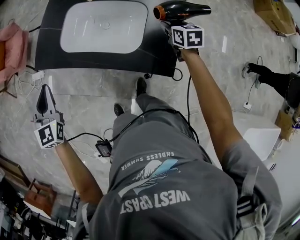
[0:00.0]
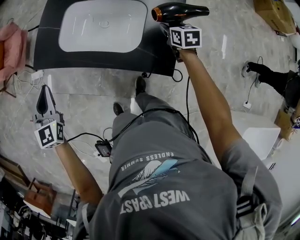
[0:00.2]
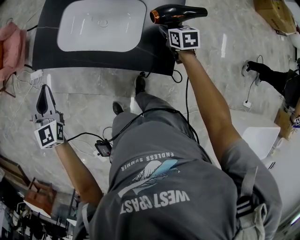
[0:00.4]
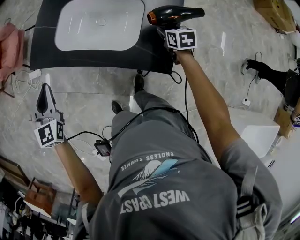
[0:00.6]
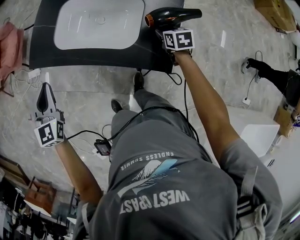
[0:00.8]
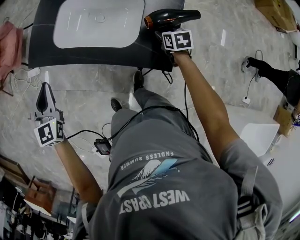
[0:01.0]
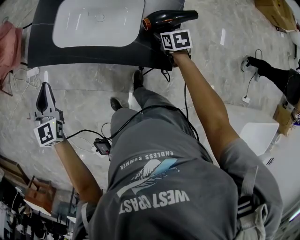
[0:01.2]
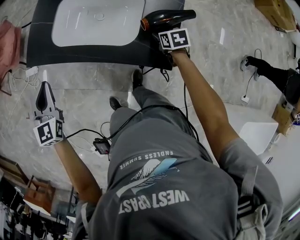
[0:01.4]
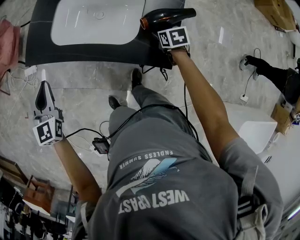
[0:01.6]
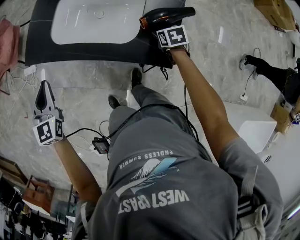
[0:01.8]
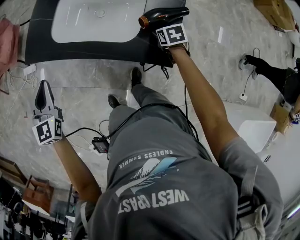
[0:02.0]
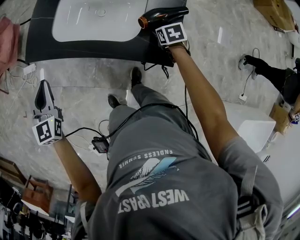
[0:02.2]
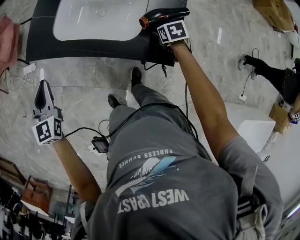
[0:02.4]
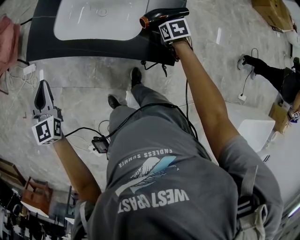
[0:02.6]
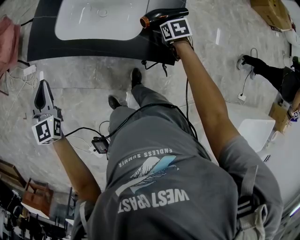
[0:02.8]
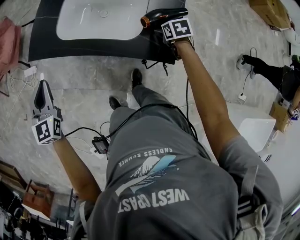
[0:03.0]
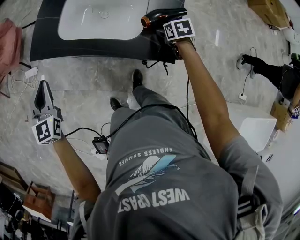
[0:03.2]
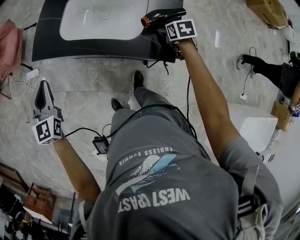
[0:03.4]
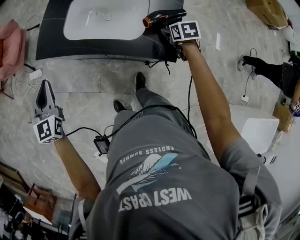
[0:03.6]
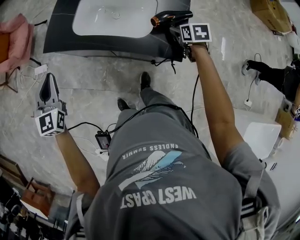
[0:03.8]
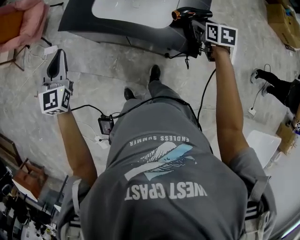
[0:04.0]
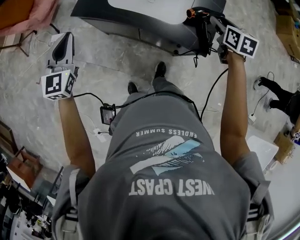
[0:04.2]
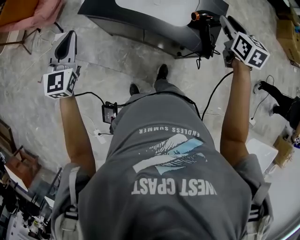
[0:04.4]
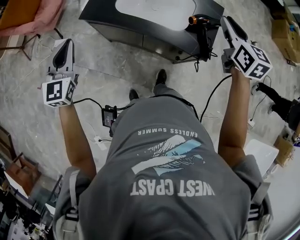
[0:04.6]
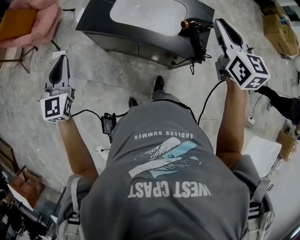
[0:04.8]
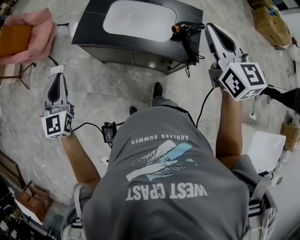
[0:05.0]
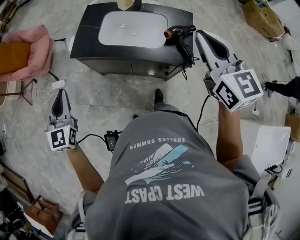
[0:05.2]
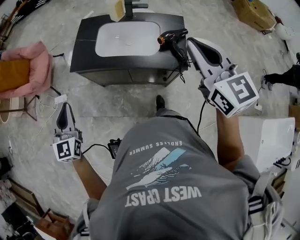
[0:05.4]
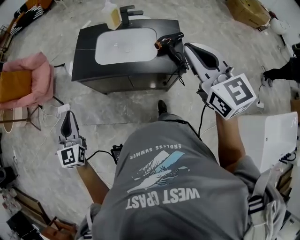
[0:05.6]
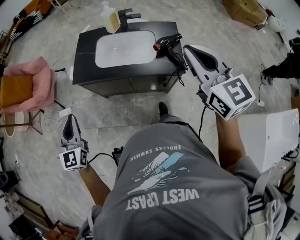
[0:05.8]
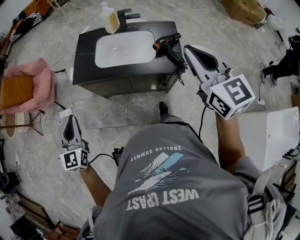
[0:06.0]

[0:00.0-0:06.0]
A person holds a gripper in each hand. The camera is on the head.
0:00.0 to 0:01.6: The right gripper is displaced downward and backward by some 15 cm.
0:01.6 to 0:03.0: The right gripper opens its fingers.
0:03.0 to 0:04.4: The left gripper travels upward and to the left by about 10 cm. The right gripper travels upward by some 30 cm, angles its fingers upward, by approximately 40 degrees, and closes.
0:04.4 to 0:06.0: The left gripper heads backward, covering roughly 10 cm. The right gripper goes approximately 30 cm upward, backward and to the left, swivels approximately 30 degrees, and closes.

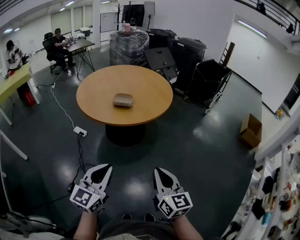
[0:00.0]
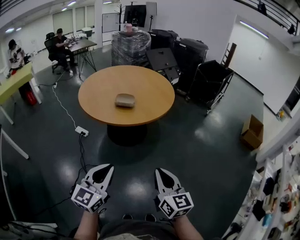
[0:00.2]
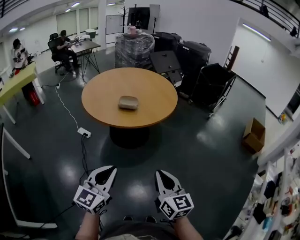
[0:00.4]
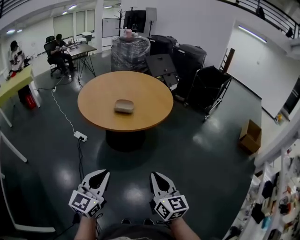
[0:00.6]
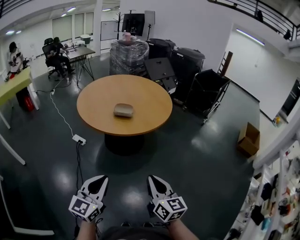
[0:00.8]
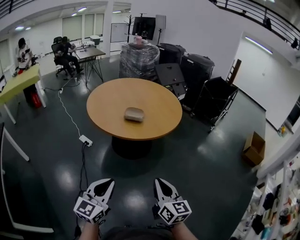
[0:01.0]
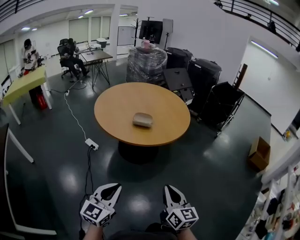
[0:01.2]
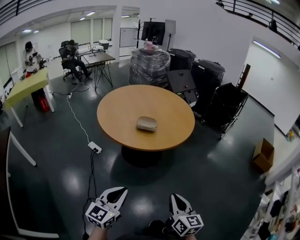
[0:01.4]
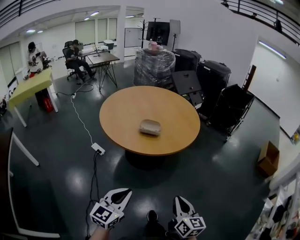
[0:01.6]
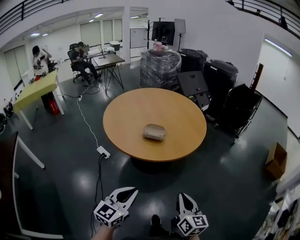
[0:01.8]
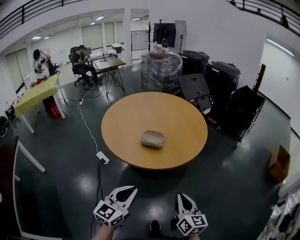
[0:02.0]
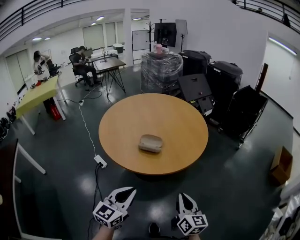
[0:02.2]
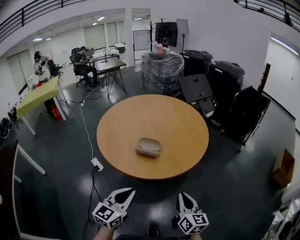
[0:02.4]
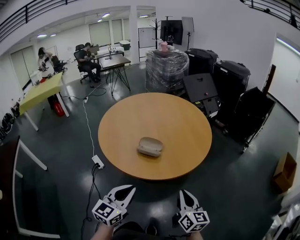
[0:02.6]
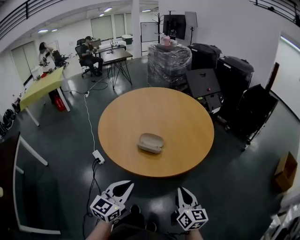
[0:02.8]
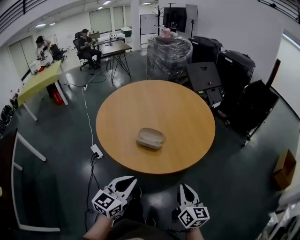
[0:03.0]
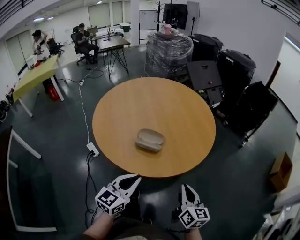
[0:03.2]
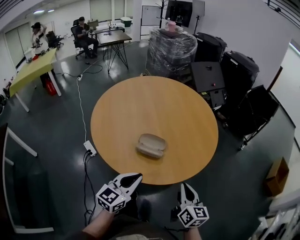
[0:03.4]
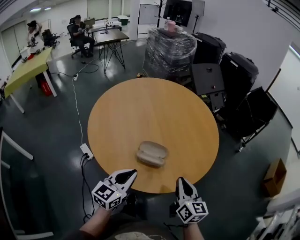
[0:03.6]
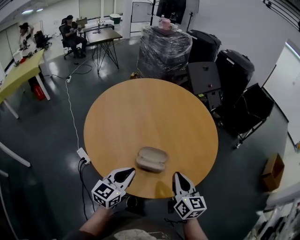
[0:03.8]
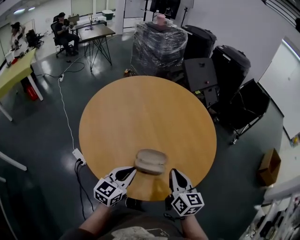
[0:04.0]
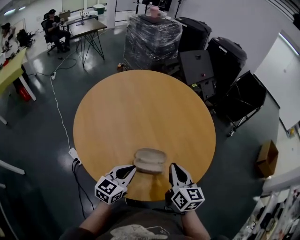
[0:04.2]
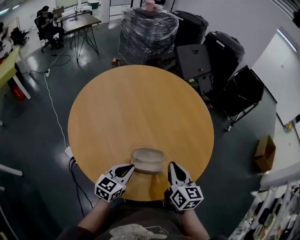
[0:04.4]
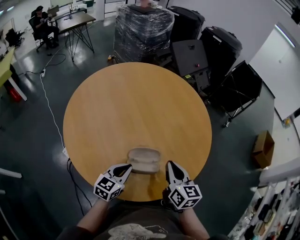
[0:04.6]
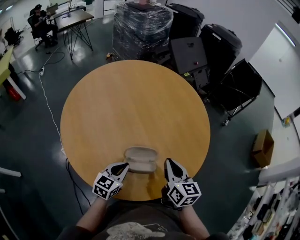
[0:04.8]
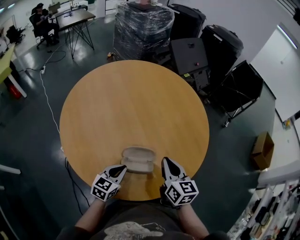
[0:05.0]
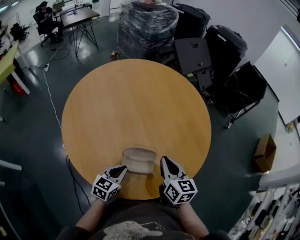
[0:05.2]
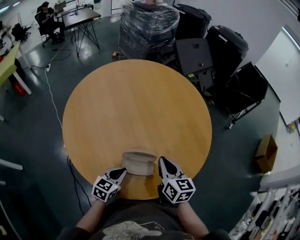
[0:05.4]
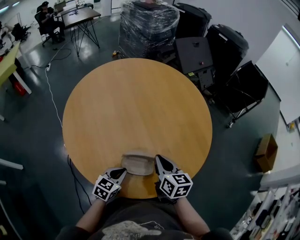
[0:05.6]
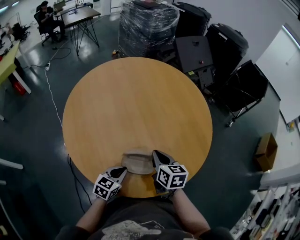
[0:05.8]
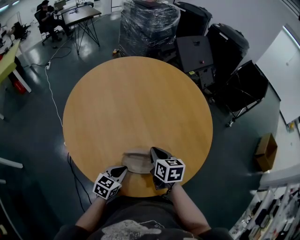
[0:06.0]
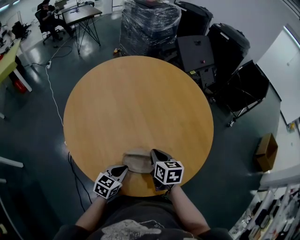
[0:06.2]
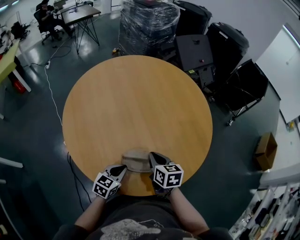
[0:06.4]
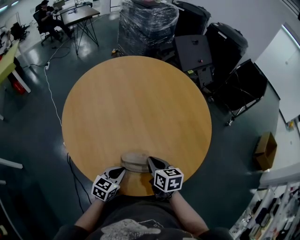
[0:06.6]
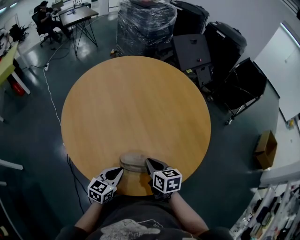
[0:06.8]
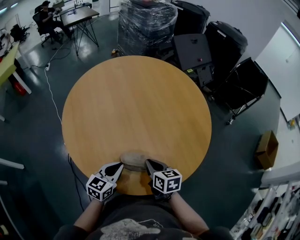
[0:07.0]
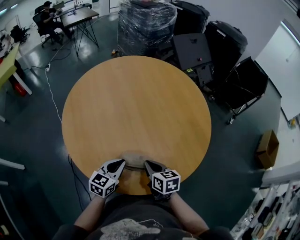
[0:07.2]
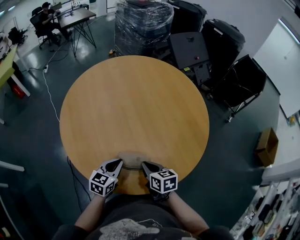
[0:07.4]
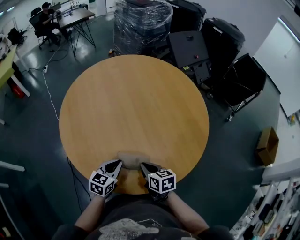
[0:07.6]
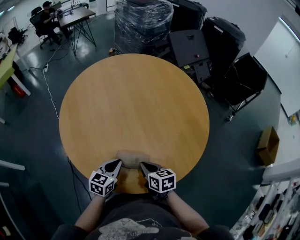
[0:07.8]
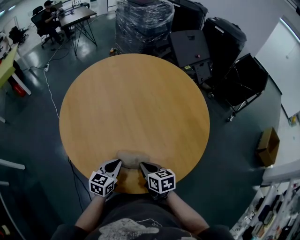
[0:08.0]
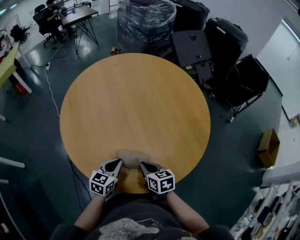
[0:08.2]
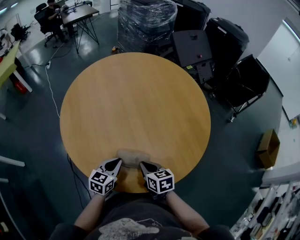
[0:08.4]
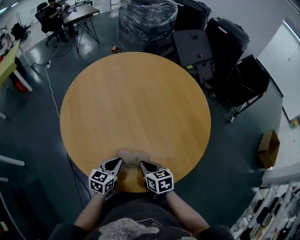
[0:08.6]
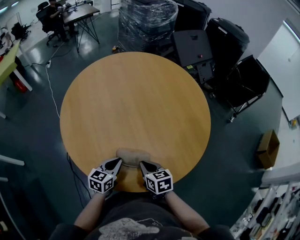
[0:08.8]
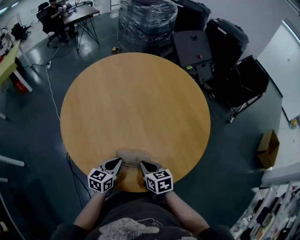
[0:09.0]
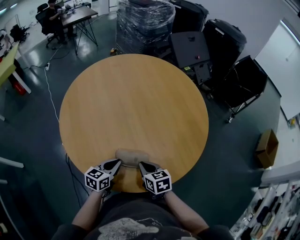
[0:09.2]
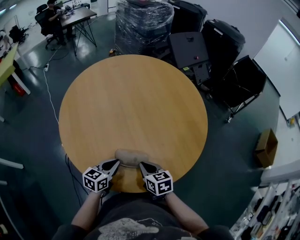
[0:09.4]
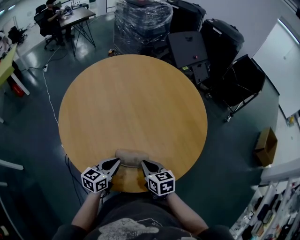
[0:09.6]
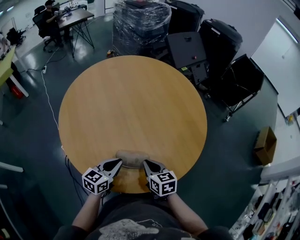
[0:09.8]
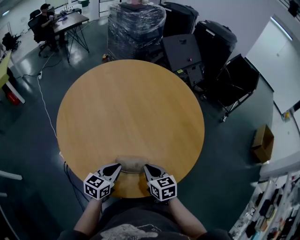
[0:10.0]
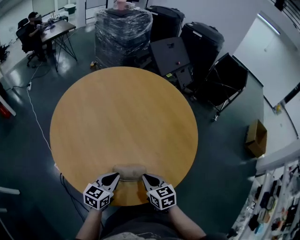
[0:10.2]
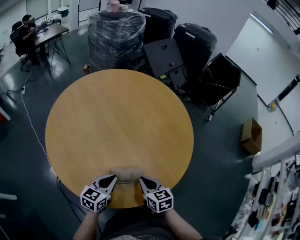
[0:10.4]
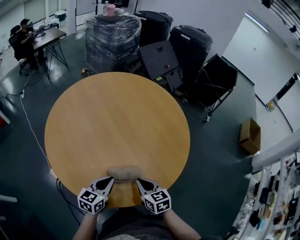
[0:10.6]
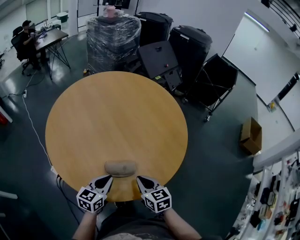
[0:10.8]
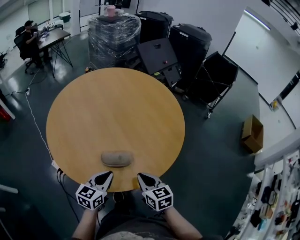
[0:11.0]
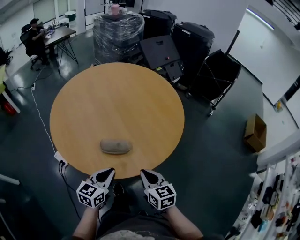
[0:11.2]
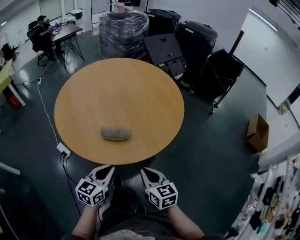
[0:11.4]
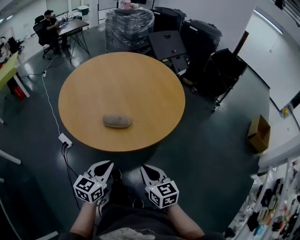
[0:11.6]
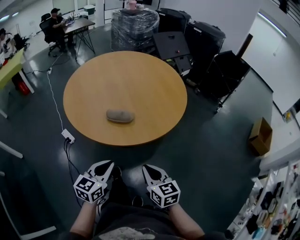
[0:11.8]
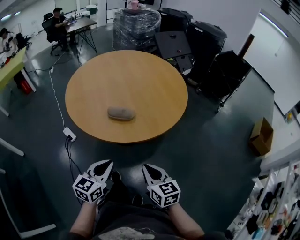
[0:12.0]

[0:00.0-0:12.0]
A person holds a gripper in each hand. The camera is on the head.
0:00.0 to 0:01.6: The right gripper is displaced forward and downward by roughly 10 cm. The left gripper shifts about 10 cm forward, downward and to the left.
0:01.6 to 0:03.0: The grippers both shift forward by some 25 cm.
0:03.0 to 0:04.4: The right gripper goes about 30 cm forward and to the left, while the left gripper travels forward, downward and to the left by some 35 cm.
0:04.4 to 0:06.0: The left gripper shifts roughly 10 cm downward; the right gripper goes approximately 10 cm downward and forward, and rotates about 20 degrees.
0:06.0 to 0:07.6: The right gripper goes roughly 10 cm backward and downward.
0:07.6 to 0:10.4: The grippers move only a little.
0:10.4 to 0:12.0: The left gripper shifts some 30 cm backward; the right gripper shifts about 30 cm backward and to the right.

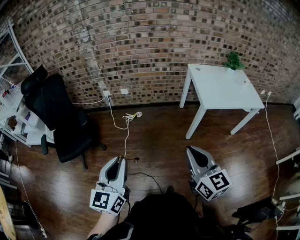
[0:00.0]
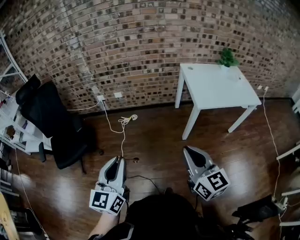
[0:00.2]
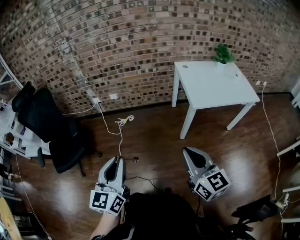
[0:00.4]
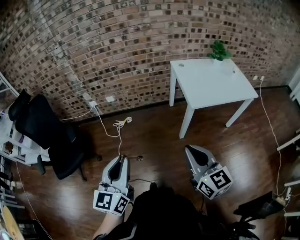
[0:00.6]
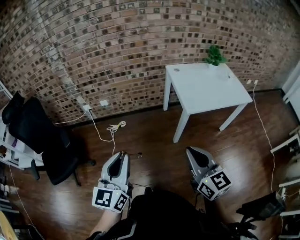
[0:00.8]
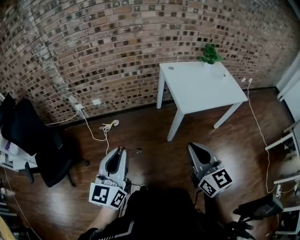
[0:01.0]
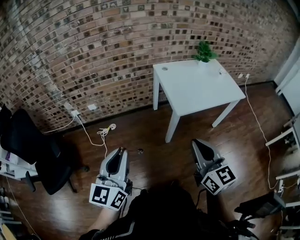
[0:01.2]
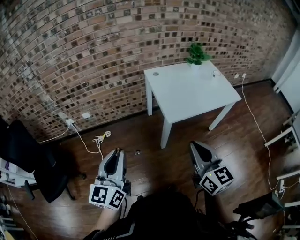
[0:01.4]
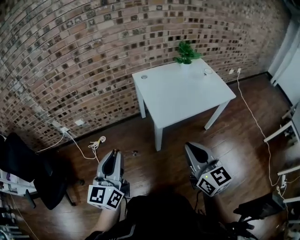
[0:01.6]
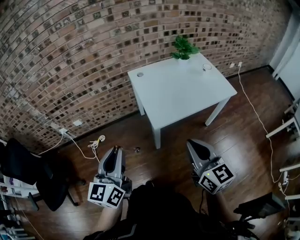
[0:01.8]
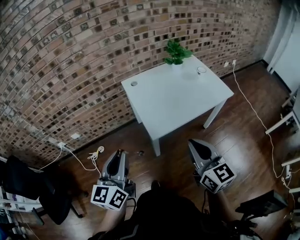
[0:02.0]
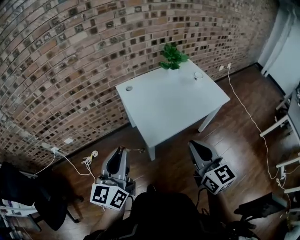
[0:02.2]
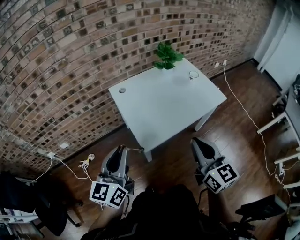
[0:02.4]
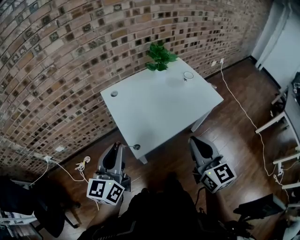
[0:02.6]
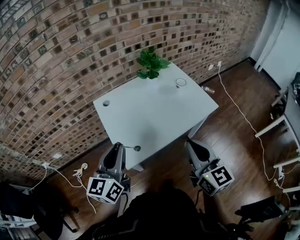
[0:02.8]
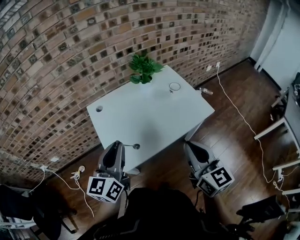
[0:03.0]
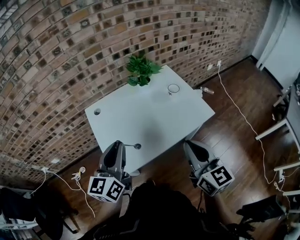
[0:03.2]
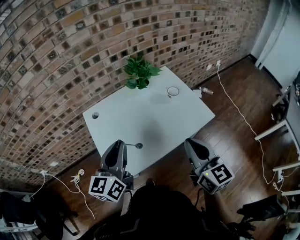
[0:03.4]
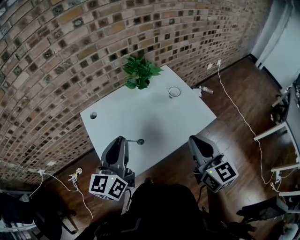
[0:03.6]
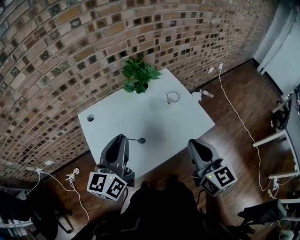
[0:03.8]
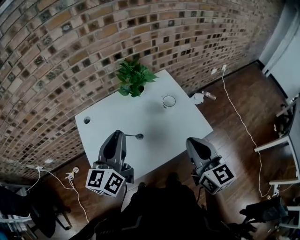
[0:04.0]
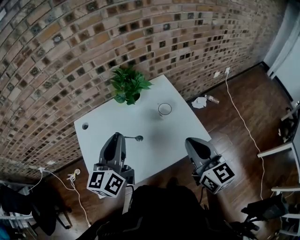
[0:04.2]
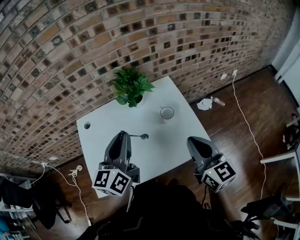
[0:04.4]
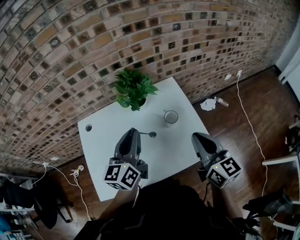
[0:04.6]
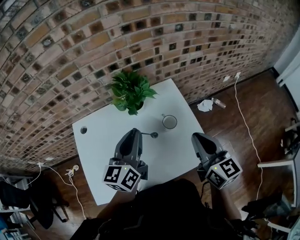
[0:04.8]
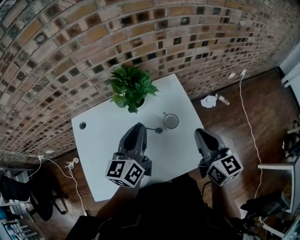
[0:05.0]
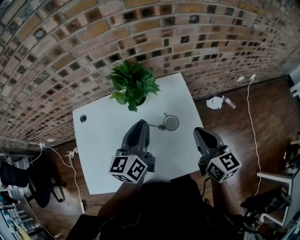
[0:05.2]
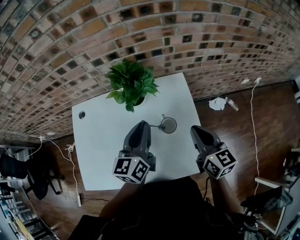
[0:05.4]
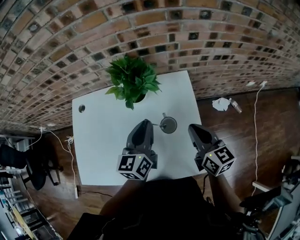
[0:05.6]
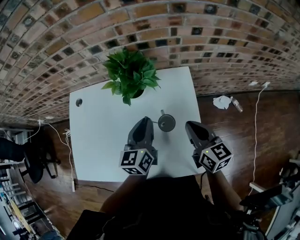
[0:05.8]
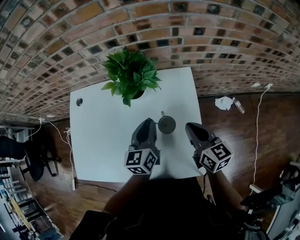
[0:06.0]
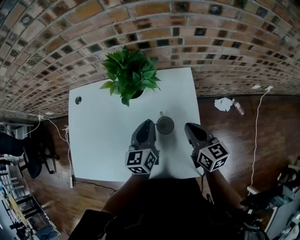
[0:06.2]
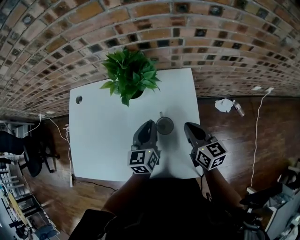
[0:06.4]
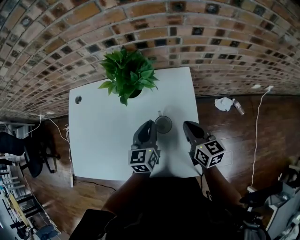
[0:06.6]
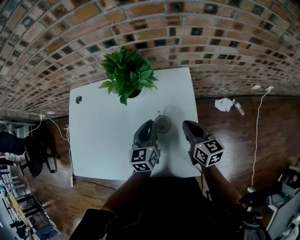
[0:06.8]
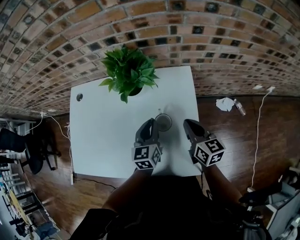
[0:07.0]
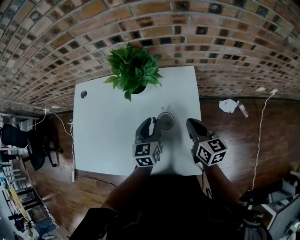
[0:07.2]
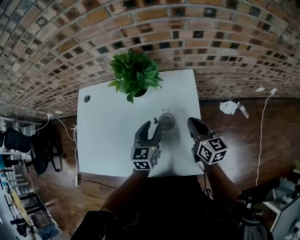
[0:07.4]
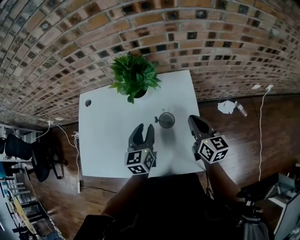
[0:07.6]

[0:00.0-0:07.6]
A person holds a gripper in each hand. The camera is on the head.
0:00.0 to 0:01.6: Both grippers travel together to the right and forward, some 35 cm.
0:01.6 to 0:03.0: The left gripper shifts about 40 cm forward and to the right. Meanwhile the right gripper is displaced to the right and forward by roughly 35 cm.
0:03.0 to 0:04.6: Both grippers travel together forward and to the right, about 35 cm.
0:04.6 to 0:06.0: The right gripper goes approximately 25 cm forward and downward, and changes its angle by roughly 30 degrees; the left gripper shifts approximately 20 cm downward, to the right and forward, and rotates about 20 degrees.
0:06.0 to 0:07.6: The left gripper opens up.
